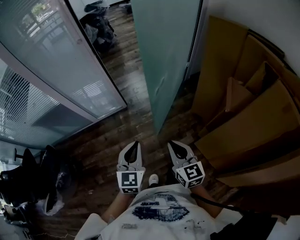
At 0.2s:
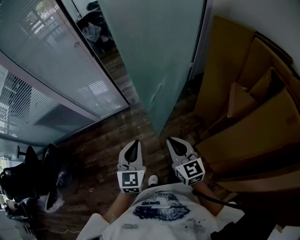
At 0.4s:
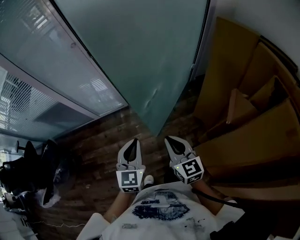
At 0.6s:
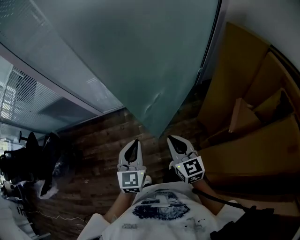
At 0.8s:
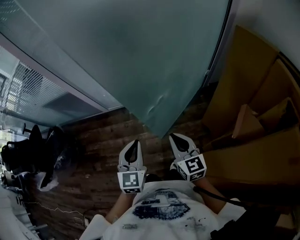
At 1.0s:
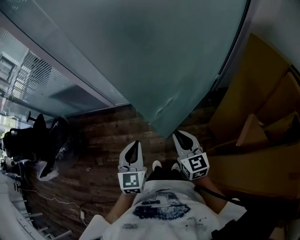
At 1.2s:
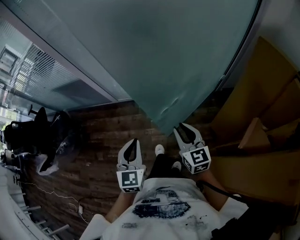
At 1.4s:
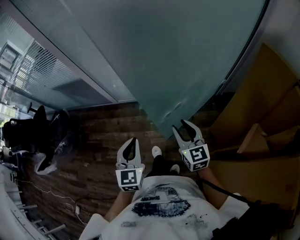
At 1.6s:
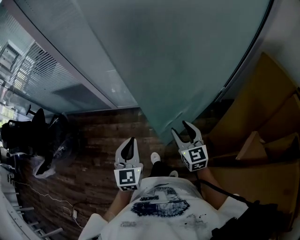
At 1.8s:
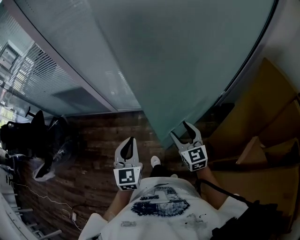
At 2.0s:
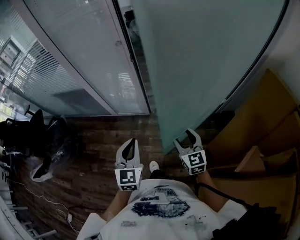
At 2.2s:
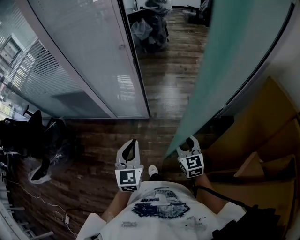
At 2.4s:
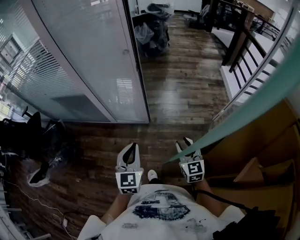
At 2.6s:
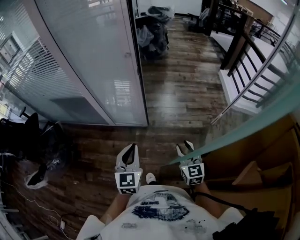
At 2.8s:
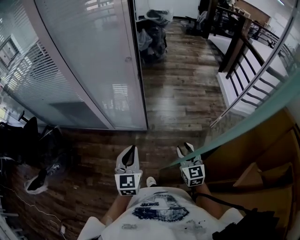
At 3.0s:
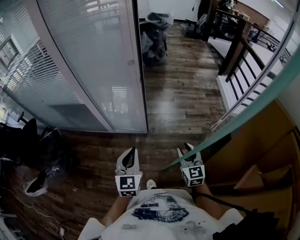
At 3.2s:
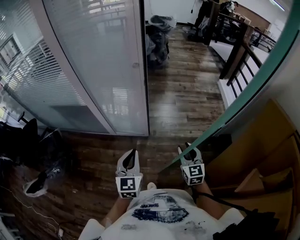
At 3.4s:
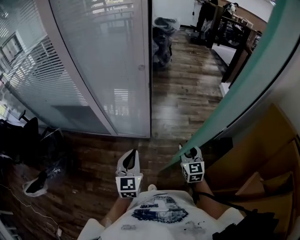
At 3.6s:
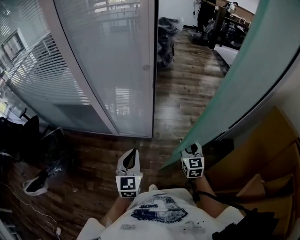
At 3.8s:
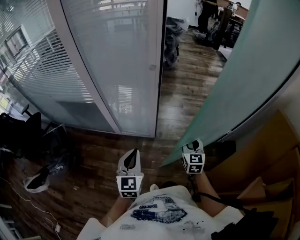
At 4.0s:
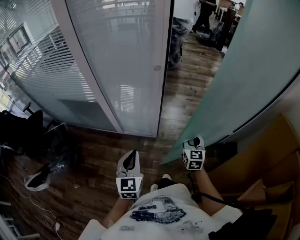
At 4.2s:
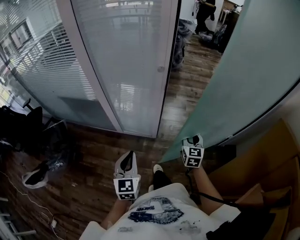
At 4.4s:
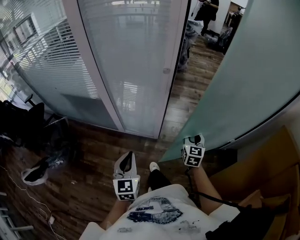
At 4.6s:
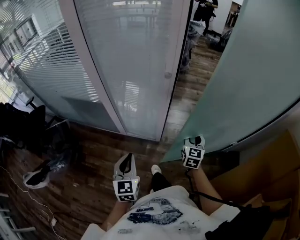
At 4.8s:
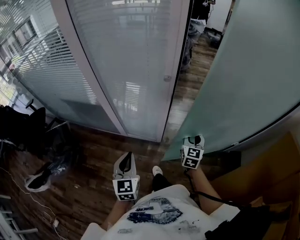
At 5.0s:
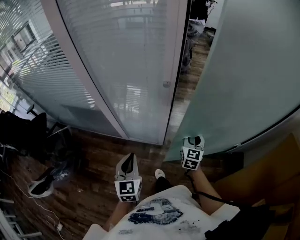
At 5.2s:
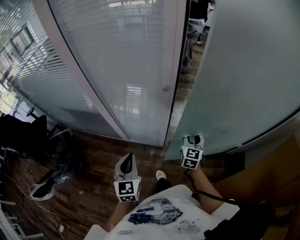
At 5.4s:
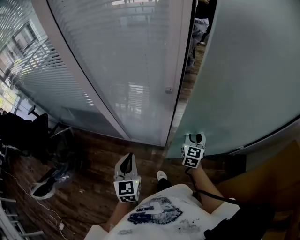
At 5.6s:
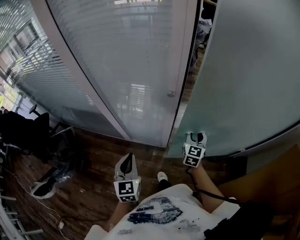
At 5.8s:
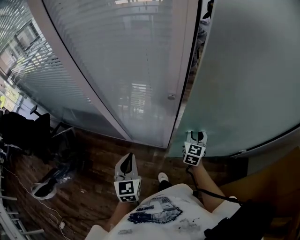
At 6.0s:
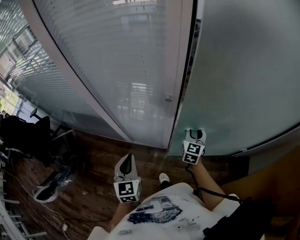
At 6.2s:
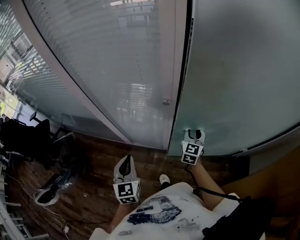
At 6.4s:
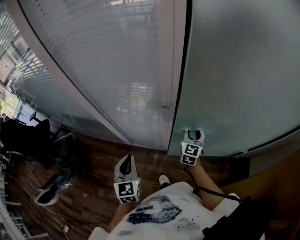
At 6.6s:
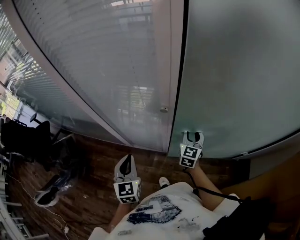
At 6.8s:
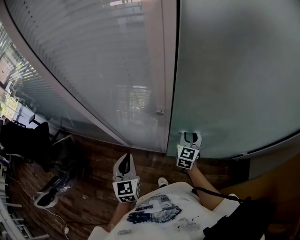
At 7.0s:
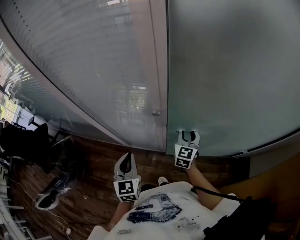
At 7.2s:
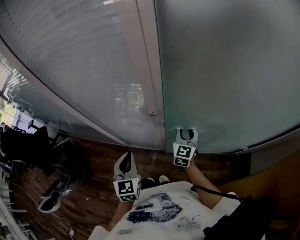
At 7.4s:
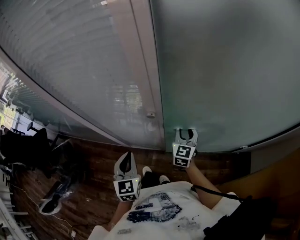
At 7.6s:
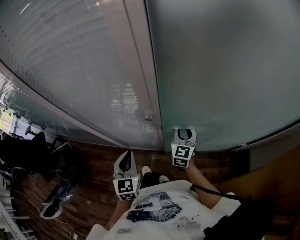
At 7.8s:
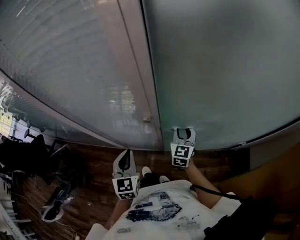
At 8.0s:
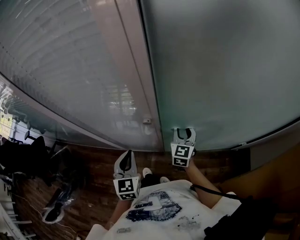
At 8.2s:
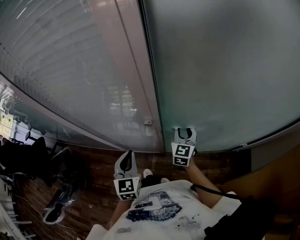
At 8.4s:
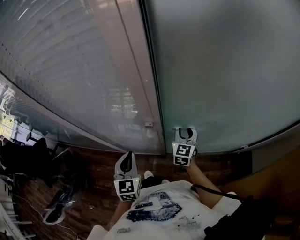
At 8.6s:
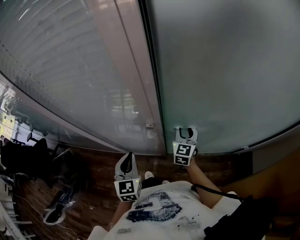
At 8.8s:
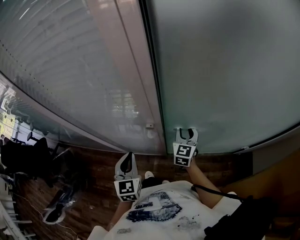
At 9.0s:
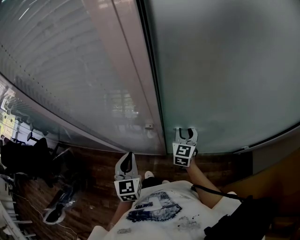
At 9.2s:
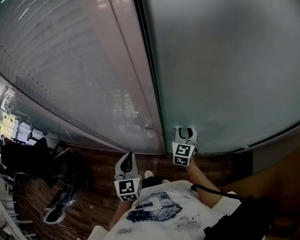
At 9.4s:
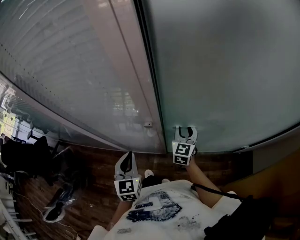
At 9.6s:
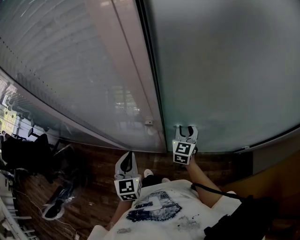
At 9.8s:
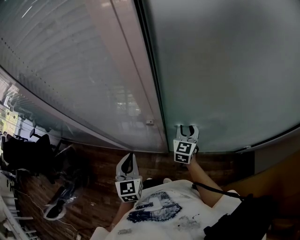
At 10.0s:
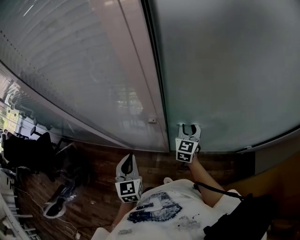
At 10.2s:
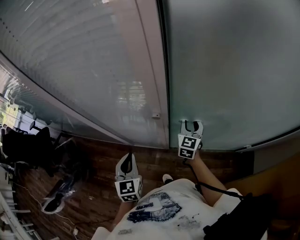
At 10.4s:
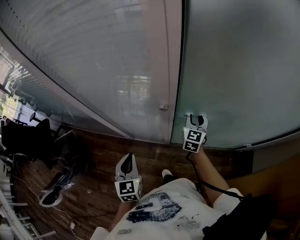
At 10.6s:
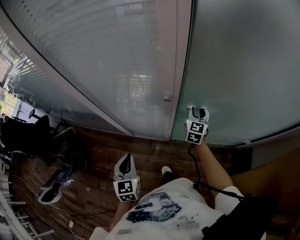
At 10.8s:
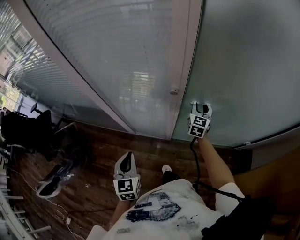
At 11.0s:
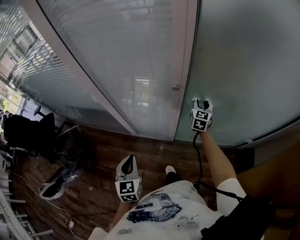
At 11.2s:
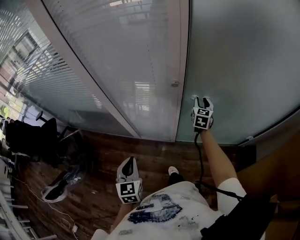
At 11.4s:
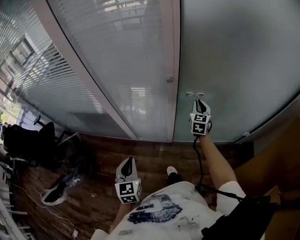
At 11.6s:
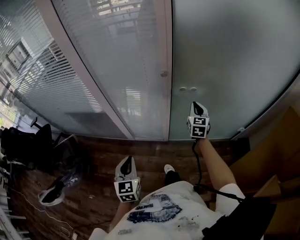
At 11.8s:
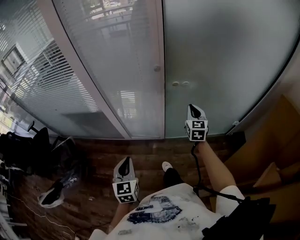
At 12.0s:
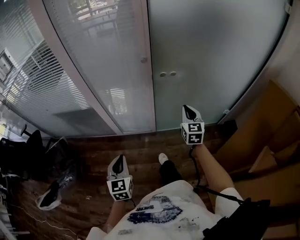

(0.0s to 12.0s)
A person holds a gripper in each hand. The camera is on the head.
0.0s - 1.6s: The right gripper shifts some 20 cm forward, rotates roughly 20 degrees, and opens, while the left gripper travels forward by some 10 cm, and rotates some 30 degrees.
1.6s - 3.0s: The right gripper is displaced forward by roughly 10 cm; the left gripper moves forward and to the left, approximately 15 cm.
3.0s - 4.4s: The right gripper moves forward, approximately 20 cm. The left gripper is displaced to the left by some 10 cm.
4.4s - 6.0s: The two grippers go about 15 cm forward.
6.0s - 7.6s: The left gripper moves forward, about 10 cm; the right gripper shifts some 5 cm forward.
7.6s - 9.0s: The grippers make only small movements.
9.0s - 10.4s: The left gripper is displaced backward by roughly 10 cm.
10.4s - 12.0s: Both grippers move backward, roughly 25 cm. The right gripper closes up.

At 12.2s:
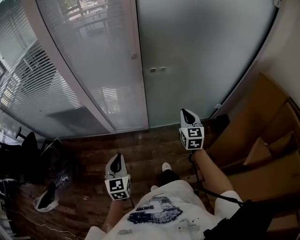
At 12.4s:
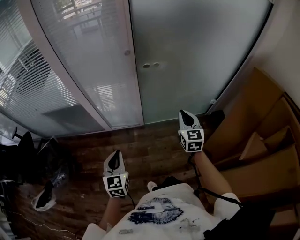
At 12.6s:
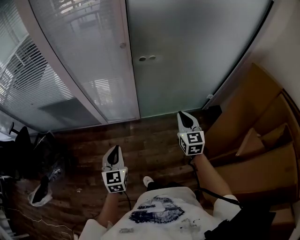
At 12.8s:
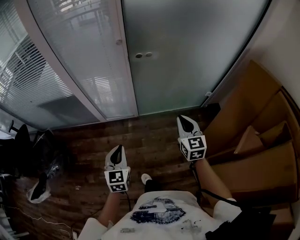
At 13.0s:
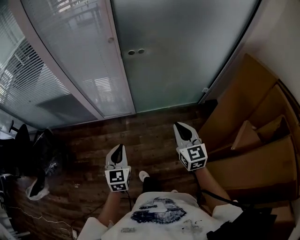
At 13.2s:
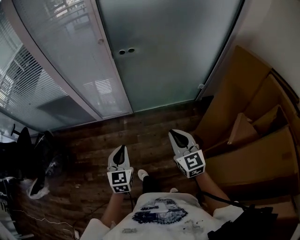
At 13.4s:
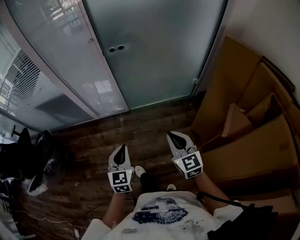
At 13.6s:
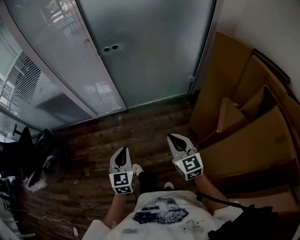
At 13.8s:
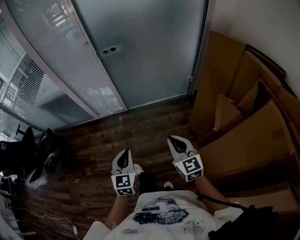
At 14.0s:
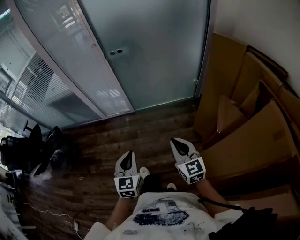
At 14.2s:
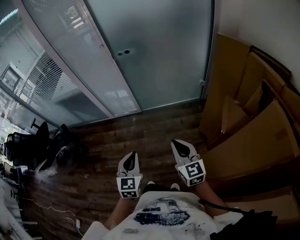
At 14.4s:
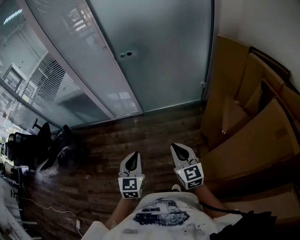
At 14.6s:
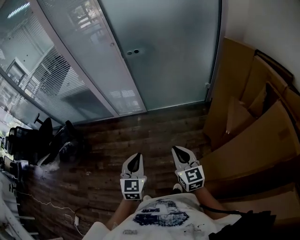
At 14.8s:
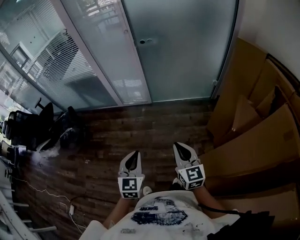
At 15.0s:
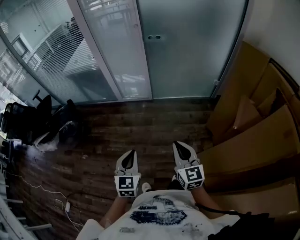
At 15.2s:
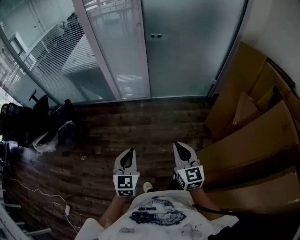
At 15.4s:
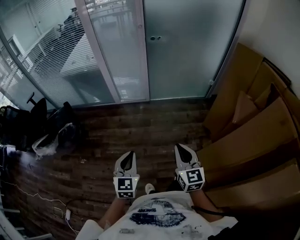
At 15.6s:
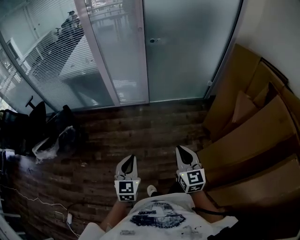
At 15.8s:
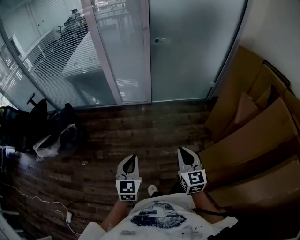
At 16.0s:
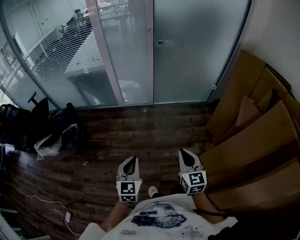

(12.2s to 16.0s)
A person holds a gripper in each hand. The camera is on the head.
12.2s - 13.4s: The right gripper heads backward, covering approximately 30 cm; the left gripper is displaced to the right and backward by about 25 cm.
13.4s - 14.8s: The two grippers go some 20 cm backward.
14.8s - 16.0s: The right gripper goes some 20 cm to the left and backward; the left gripper travels to the left by roughly 20 cm.

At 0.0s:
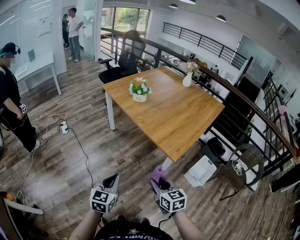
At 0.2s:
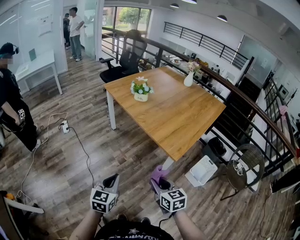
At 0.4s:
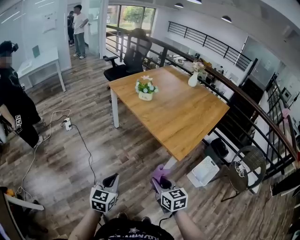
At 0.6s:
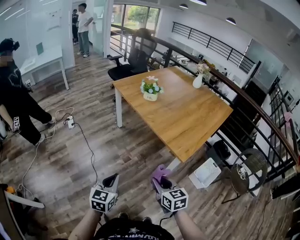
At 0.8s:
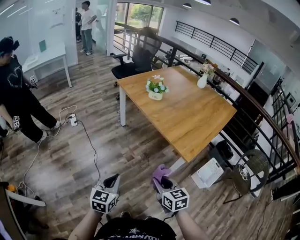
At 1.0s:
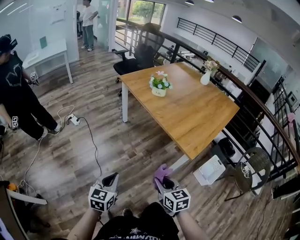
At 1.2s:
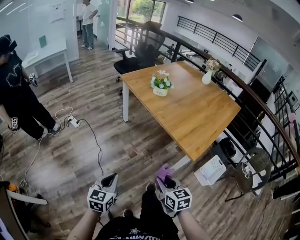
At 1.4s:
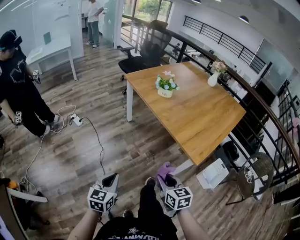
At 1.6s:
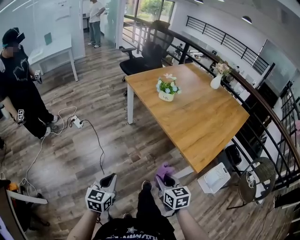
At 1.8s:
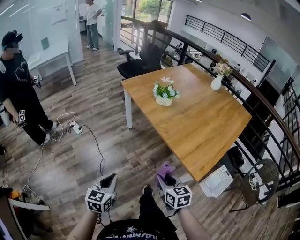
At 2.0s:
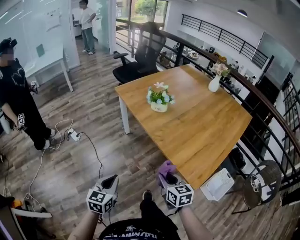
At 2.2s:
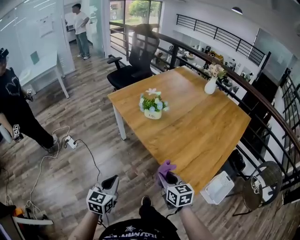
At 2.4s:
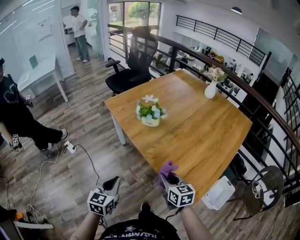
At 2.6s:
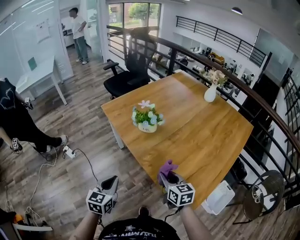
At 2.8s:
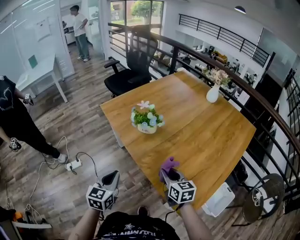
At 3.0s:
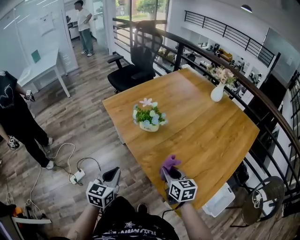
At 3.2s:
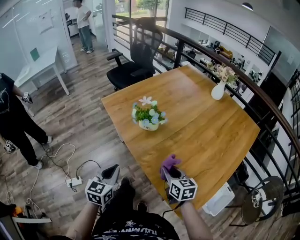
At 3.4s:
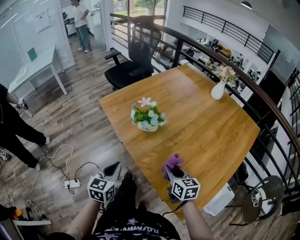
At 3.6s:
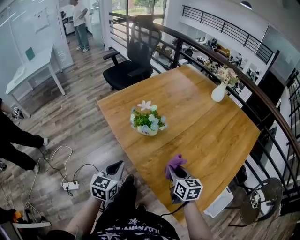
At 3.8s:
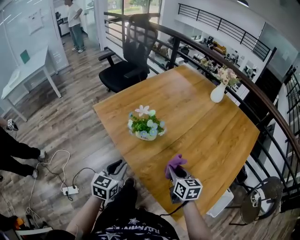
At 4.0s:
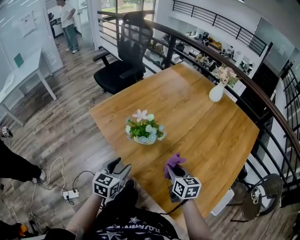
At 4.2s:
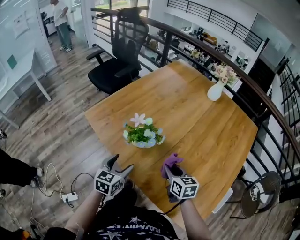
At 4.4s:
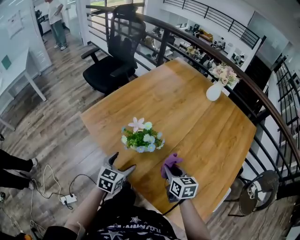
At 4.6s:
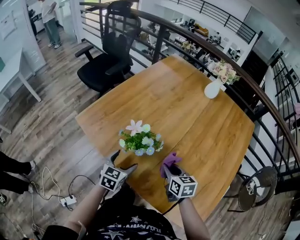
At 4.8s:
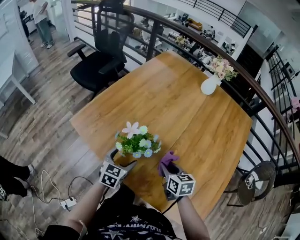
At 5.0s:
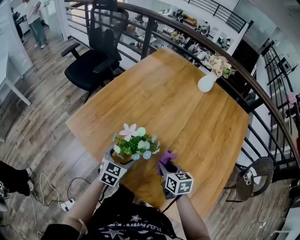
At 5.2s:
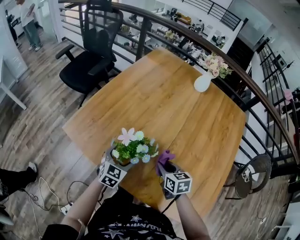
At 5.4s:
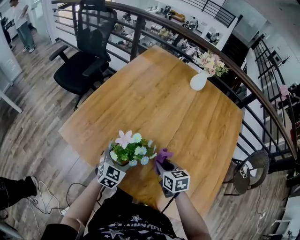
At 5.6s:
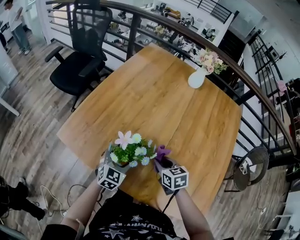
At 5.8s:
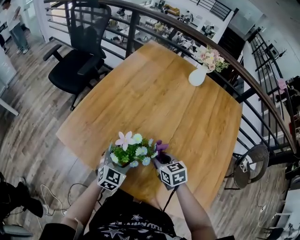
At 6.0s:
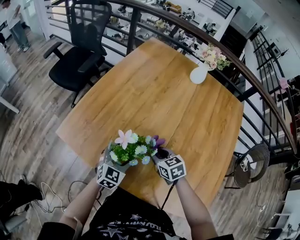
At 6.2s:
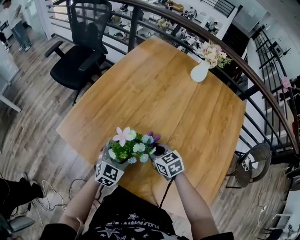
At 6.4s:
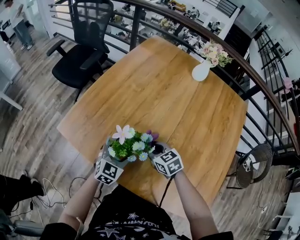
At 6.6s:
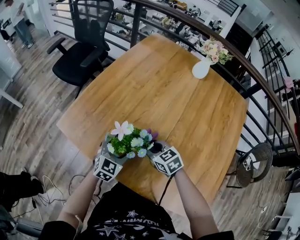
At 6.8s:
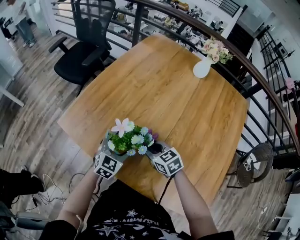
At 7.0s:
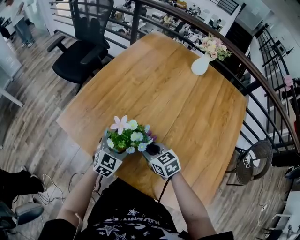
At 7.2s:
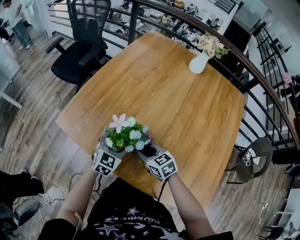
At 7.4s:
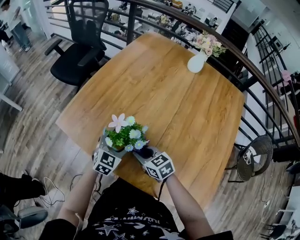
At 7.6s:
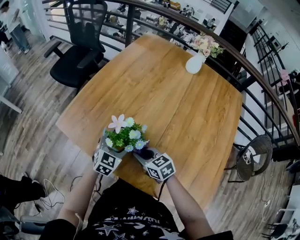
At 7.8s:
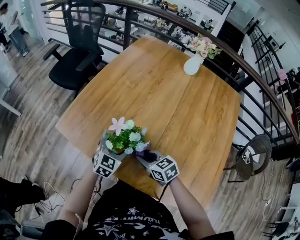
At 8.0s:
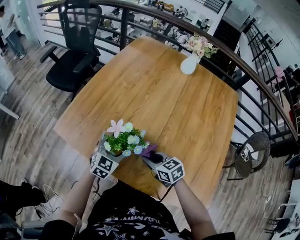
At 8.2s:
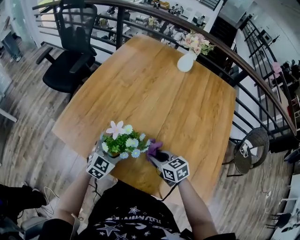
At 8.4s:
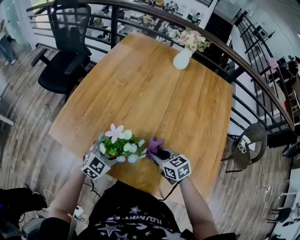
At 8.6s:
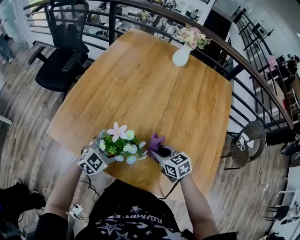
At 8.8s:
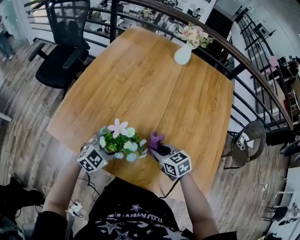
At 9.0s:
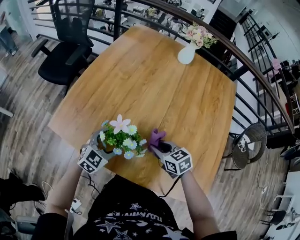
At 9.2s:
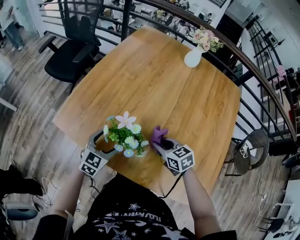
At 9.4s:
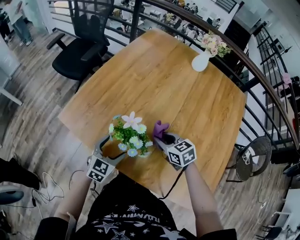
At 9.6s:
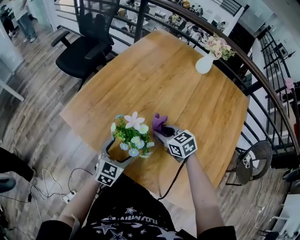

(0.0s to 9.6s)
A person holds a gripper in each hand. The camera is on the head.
0.0s - 1.6s: The right gripper goes roughly 15 cm forward and to the left; the left gripper moves to the left and forward, roughly 15 cm.
1.6s - 3.2s: Both grippers move forward and to the right, roughly 40 cm.
3.2s - 4.8s: The right gripper is displaced forward by some 20 cm, and turns by roughly 20 degrees. Meanwhile the left gripper heads forward and downward, covering approximately 30 cm, swivels about 30 degrees, and opens its fingers.
4.8s - 6.4s: The left gripper ends up some 5 cm from where it was, and swivels about 20 degrees; the right gripper moves forward and to the left, about 10 cm, and rotates about 20 degrees.
6.4s - 8.0s: The right gripper goes some 10 cm backward.
8.0s - 9.6s: The left gripper heads backward, covering some 5 cm. The right gripper travels forward by about 10 cm.
